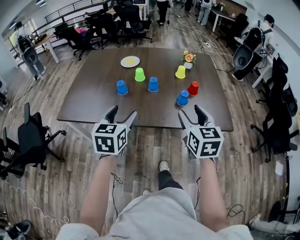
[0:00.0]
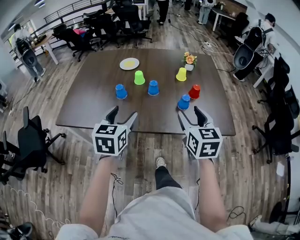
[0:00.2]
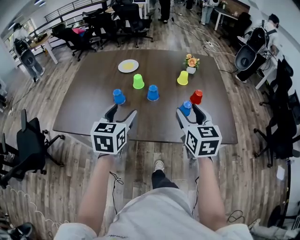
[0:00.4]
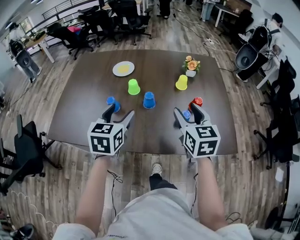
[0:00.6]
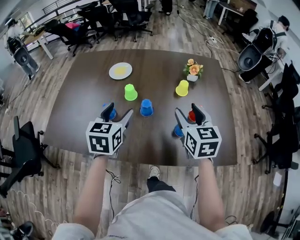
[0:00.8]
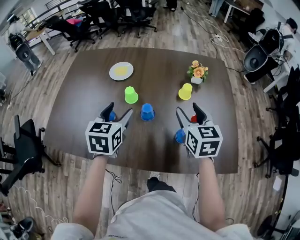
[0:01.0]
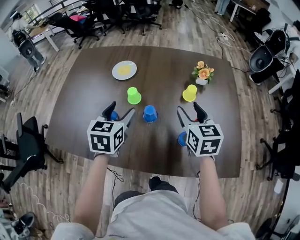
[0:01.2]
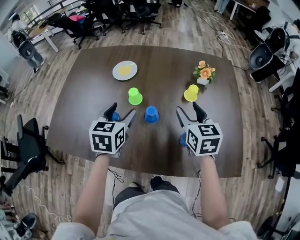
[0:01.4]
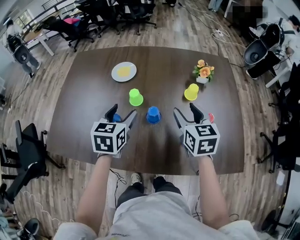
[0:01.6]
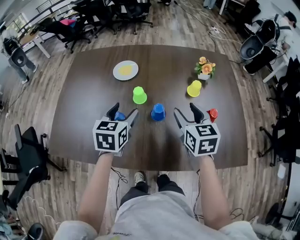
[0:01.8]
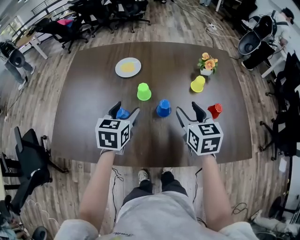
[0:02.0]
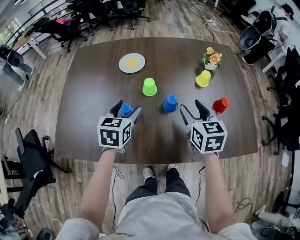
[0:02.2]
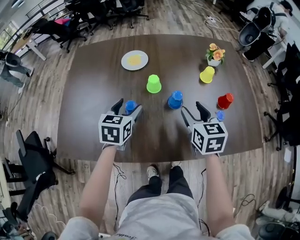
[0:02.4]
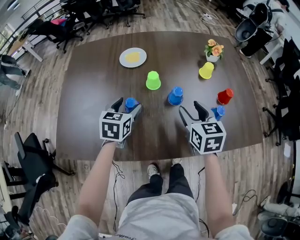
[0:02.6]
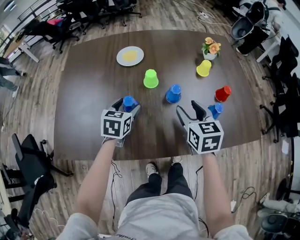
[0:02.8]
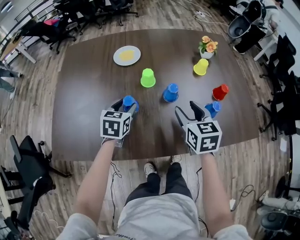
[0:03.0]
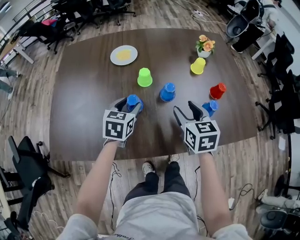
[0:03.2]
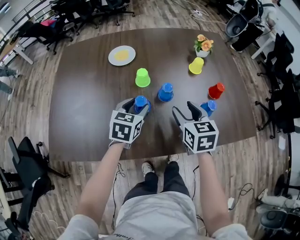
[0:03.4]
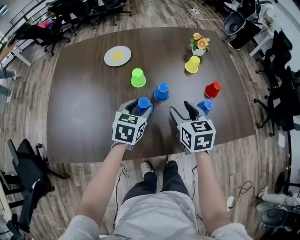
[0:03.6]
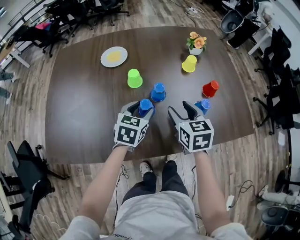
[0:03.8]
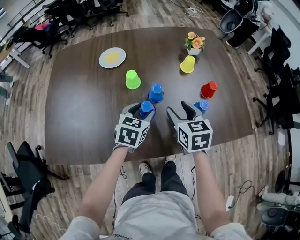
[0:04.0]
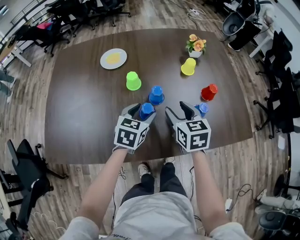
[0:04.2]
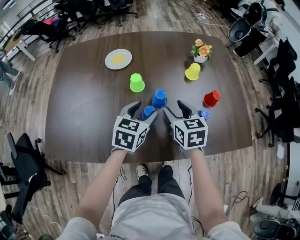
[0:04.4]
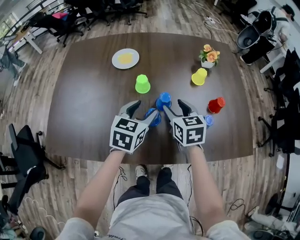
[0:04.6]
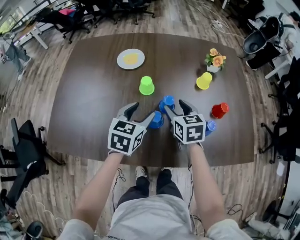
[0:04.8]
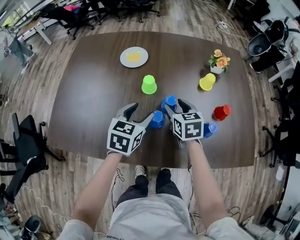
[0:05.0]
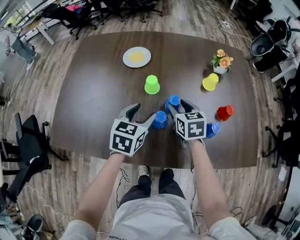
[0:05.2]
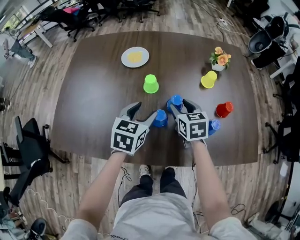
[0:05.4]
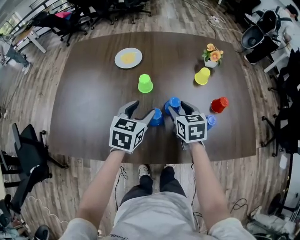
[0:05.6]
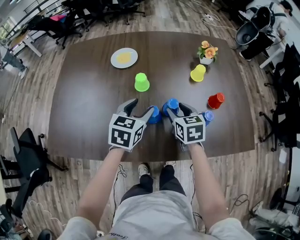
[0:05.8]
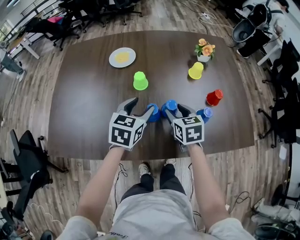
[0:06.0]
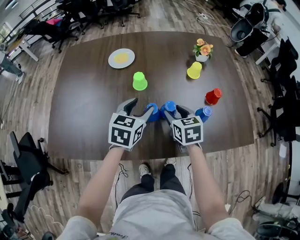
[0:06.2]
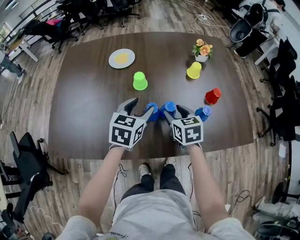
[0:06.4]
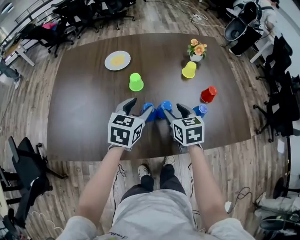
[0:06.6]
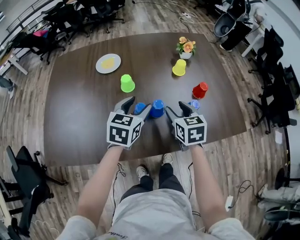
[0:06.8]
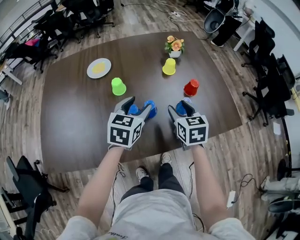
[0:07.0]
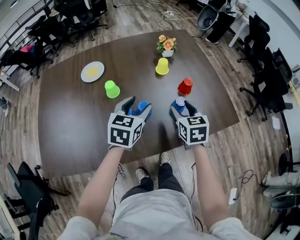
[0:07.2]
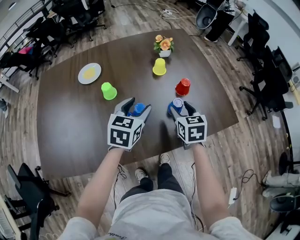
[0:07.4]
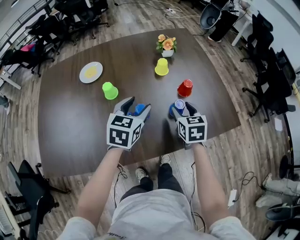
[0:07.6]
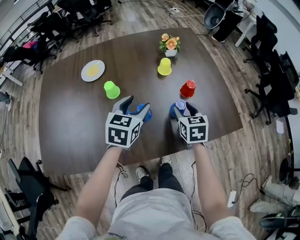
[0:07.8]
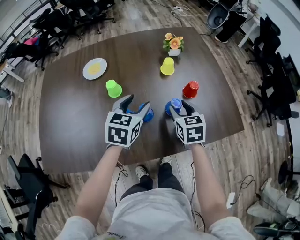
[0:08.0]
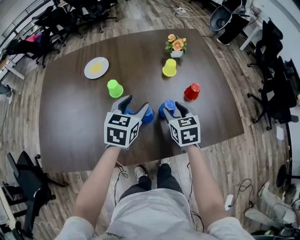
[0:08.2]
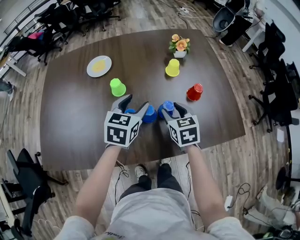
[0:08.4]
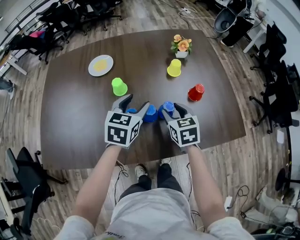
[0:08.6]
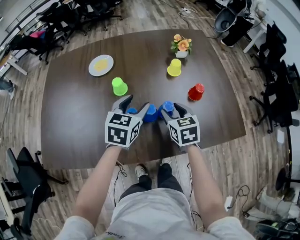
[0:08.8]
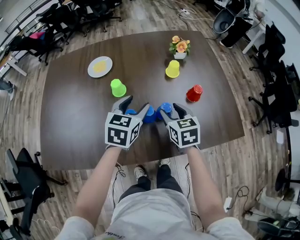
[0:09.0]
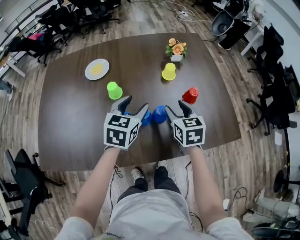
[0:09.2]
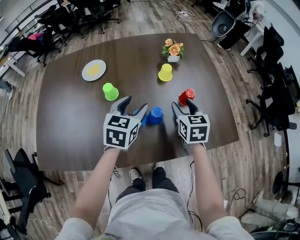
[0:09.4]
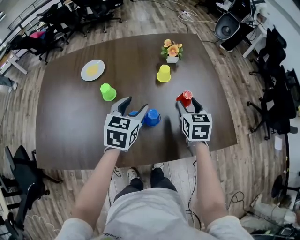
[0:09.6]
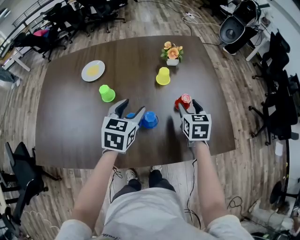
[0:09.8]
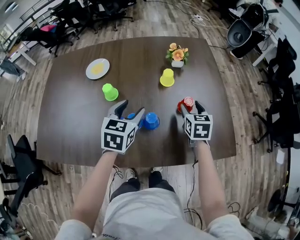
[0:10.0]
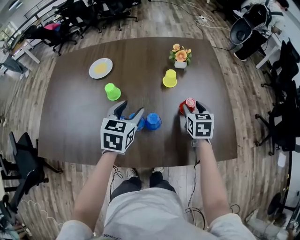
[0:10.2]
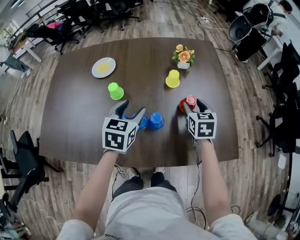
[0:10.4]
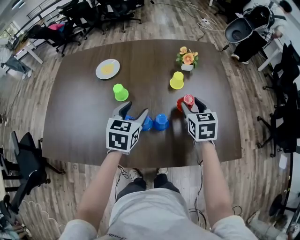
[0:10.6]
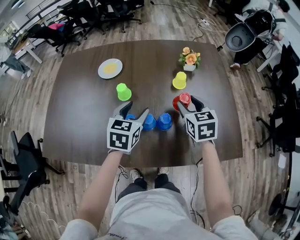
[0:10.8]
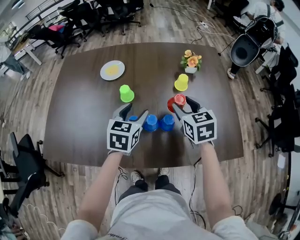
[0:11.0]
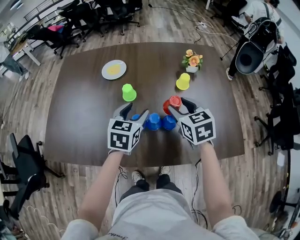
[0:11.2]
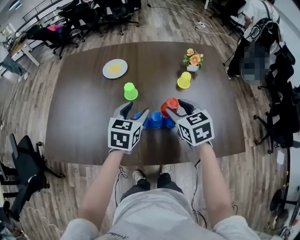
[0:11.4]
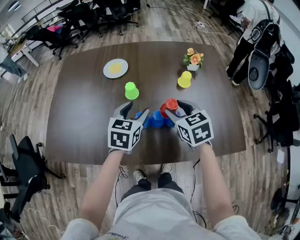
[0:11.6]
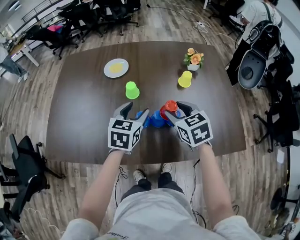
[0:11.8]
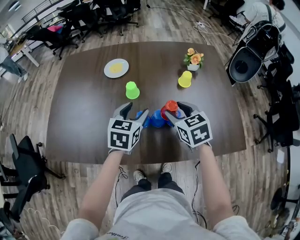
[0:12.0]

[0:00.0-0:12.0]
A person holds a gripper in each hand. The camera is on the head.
0:00.0 to 0:01.6: The two grippers go some 30 cm forward.
0:01.6 to 0:03.0: The left gripper travels downward and to the left by some 15 cm; the right gripper moves to the left, backward and downward, about 15 cm.
0:03.0 to 0:04.4: The left gripper heads to the right, covering approximately 15 cm.
0:06.0 to 0:07.6: Both grippers travel together to the right, approximately 15 cm.
0:07.6 to 0:09.0: The right gripper moves to the left, roughly 10 cm.
0:09.0 to 0:10.4: The right gripper travels to the right and forward by some 15 cm.
0:10.4 to 0:12.0: The left gripper goes roughly 10 cm to the left. Meanwhile the right gripper is displaced to the left by roughly 20 cm.

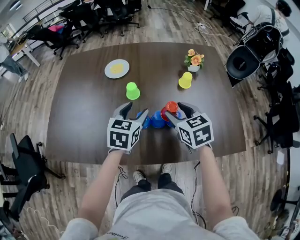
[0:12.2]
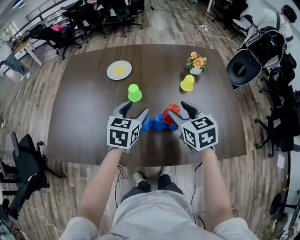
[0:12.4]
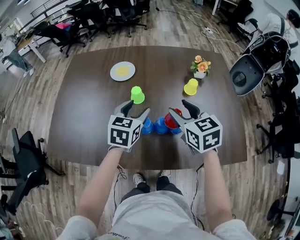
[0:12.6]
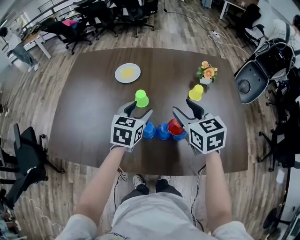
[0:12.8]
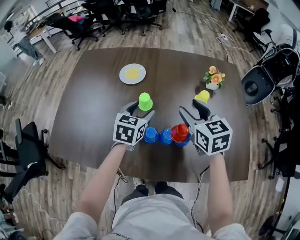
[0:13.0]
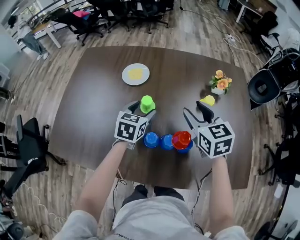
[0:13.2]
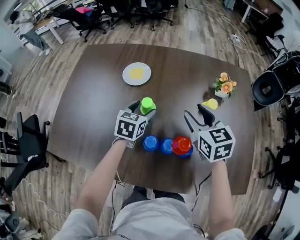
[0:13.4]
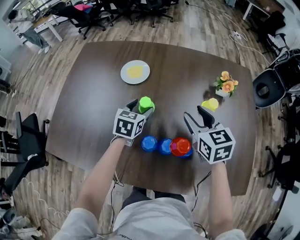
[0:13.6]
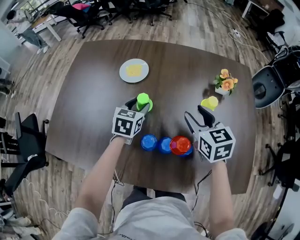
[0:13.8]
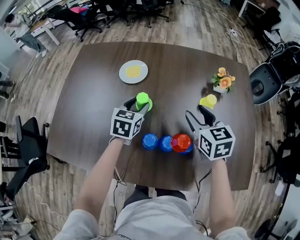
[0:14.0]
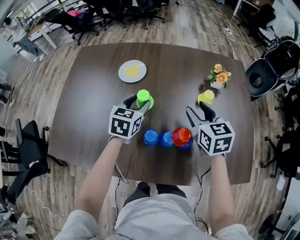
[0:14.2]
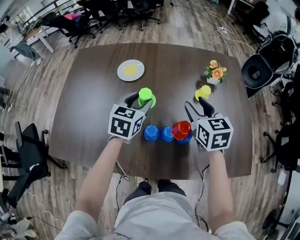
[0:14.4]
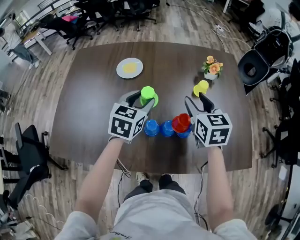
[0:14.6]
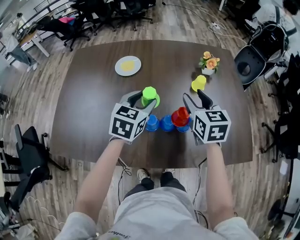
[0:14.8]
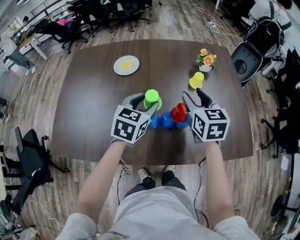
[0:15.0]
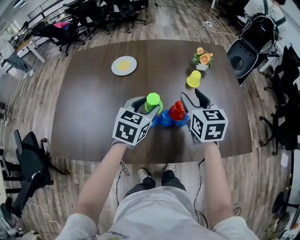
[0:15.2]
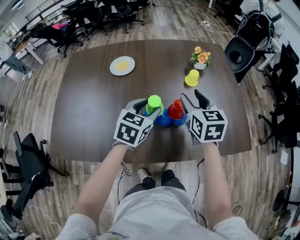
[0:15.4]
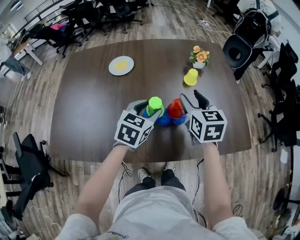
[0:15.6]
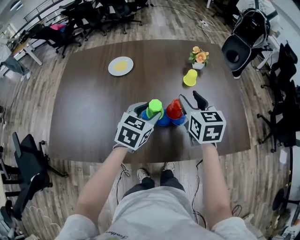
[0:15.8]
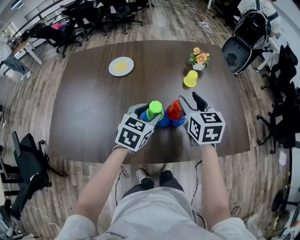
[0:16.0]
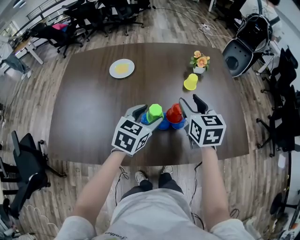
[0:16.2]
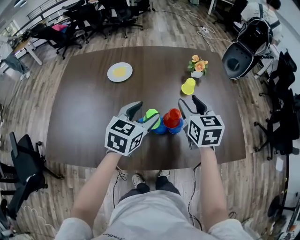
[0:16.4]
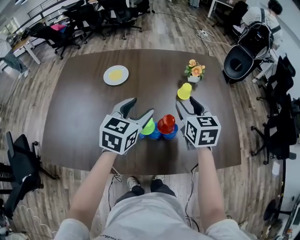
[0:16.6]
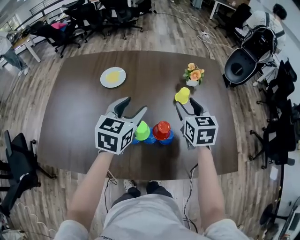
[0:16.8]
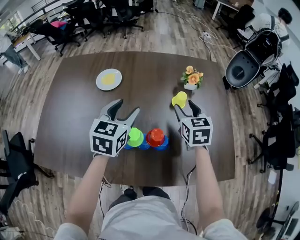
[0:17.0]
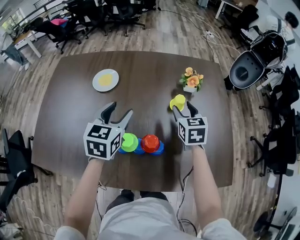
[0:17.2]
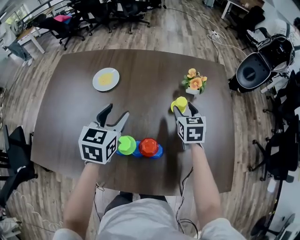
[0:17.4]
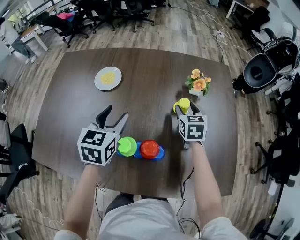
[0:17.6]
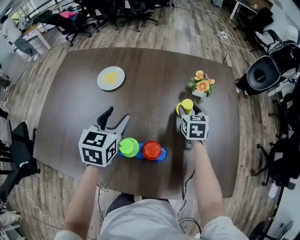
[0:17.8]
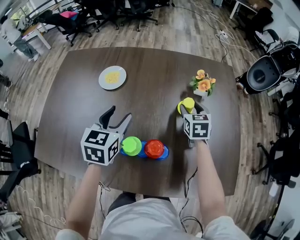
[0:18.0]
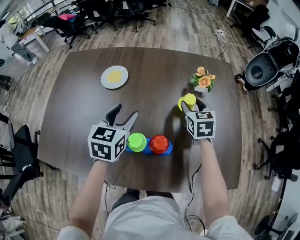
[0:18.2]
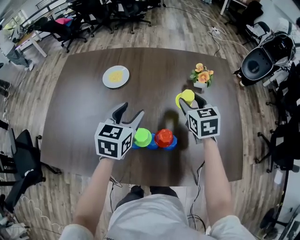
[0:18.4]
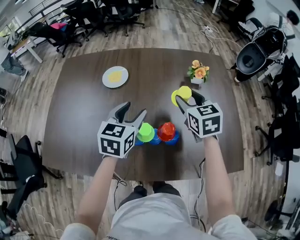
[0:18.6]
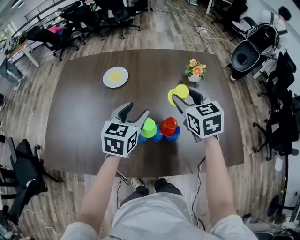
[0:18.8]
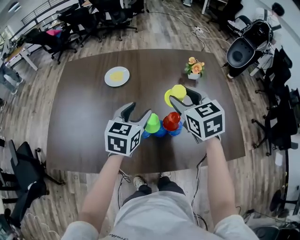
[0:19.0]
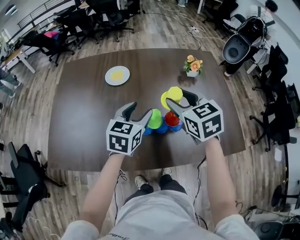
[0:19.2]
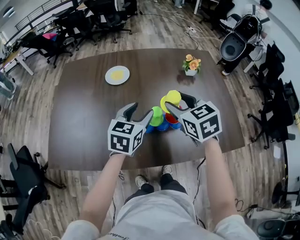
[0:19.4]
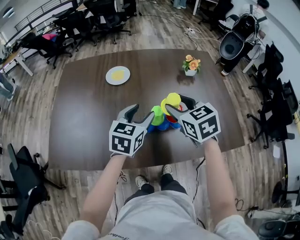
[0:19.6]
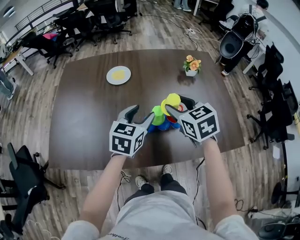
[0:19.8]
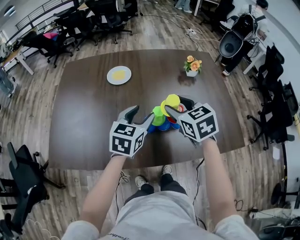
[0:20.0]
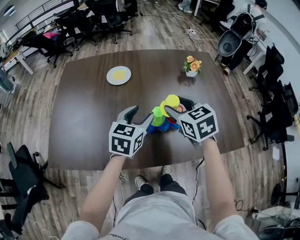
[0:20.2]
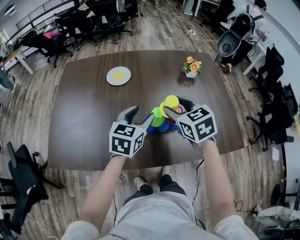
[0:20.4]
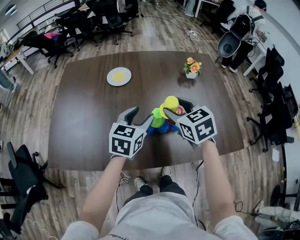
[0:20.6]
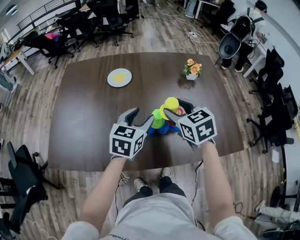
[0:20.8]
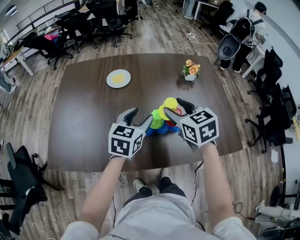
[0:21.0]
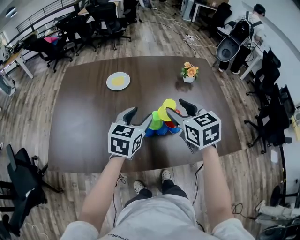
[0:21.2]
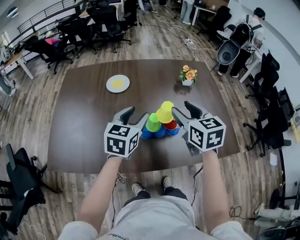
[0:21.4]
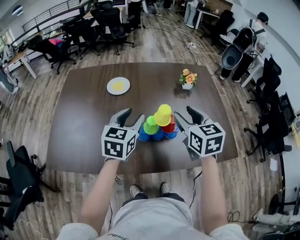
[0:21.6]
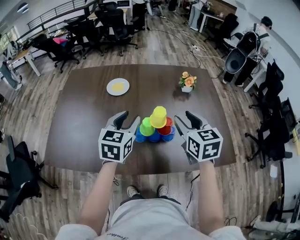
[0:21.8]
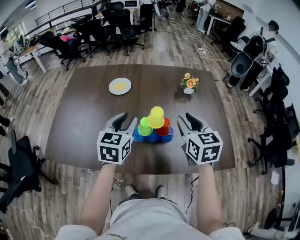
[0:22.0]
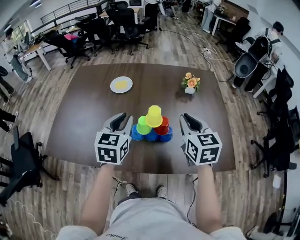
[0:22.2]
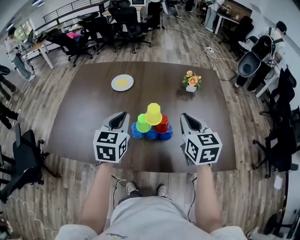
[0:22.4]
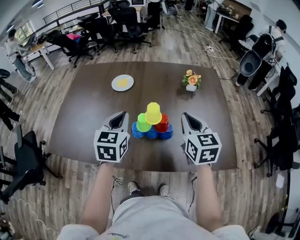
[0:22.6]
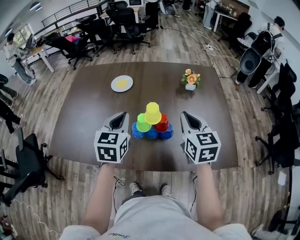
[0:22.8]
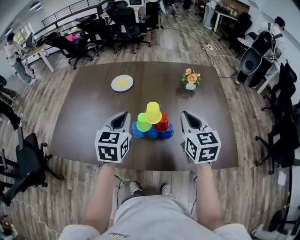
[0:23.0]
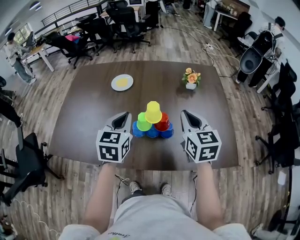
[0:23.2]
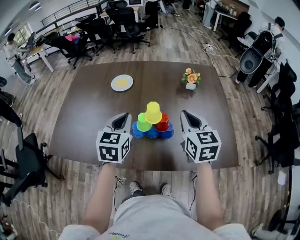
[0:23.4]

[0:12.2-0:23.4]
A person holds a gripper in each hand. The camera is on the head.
0:12.2 to 0:13.8: The right gripper is displaced forward by approximately 15 cm; the left gripper goes some 15 cm forward and downward.
0:13.8 to 0:15.4: The right gripper travels backward and upward by approximately 10 cm, and swivels approximately 20 degrees, while the left gripper moves backward, upward and to the right, about 20 cm, and rotates roughly 20 degrees.
0:15.4 to 0:17.0: Both grippers move forward, approximately 10 cm.
0:17.0 to 0:18.6: The right gripper travels downward and back again, about 10 cm each way.
0:18.6 to 0:20.2: The right gripper moves backward and to the left, approximately 15 cm. Meanwhile the left gripper shifts about 10 cm backward.
0:20.2 to 0:21.8: The right gripper moves to the right, some 10 cm.
0:21.8 to 0:23.4: The right gripper closes. Meanwhile the left gripper closes up.

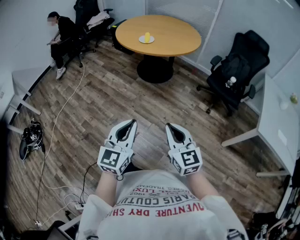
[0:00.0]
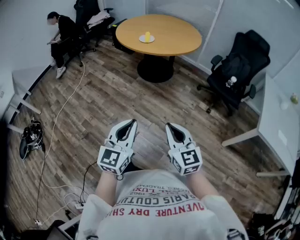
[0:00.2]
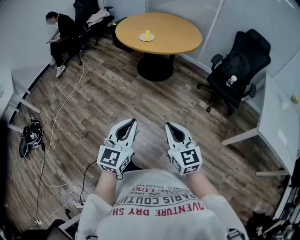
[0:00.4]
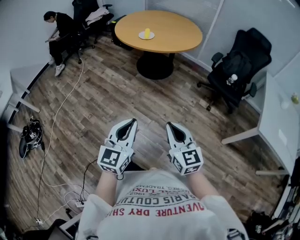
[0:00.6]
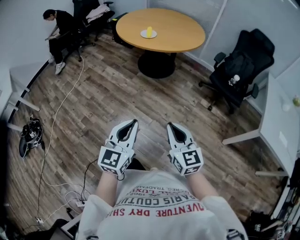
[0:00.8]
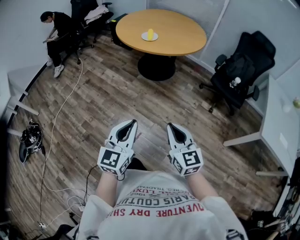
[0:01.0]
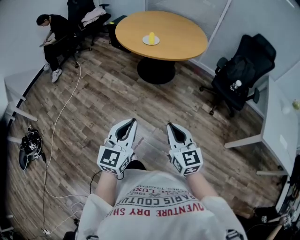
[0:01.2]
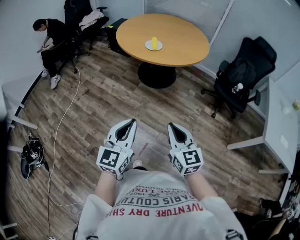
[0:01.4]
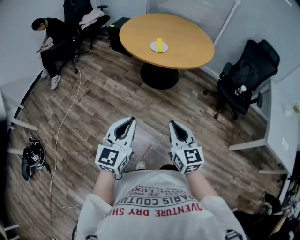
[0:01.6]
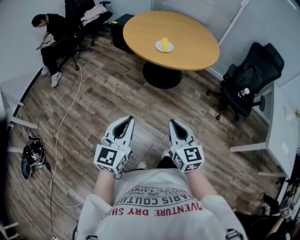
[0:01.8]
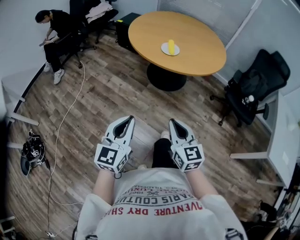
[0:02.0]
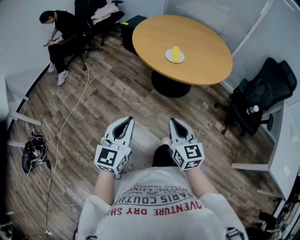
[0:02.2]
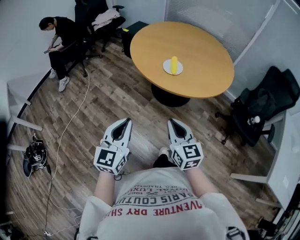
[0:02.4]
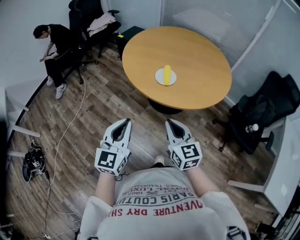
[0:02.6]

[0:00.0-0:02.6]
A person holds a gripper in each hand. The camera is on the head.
0:00.0 to 0:01.2: Both grippers travel together forward and to the left, roughly 15 cm.
0:01.2 to 0:02.6: The grippers both shift forward by about 40 cm.
